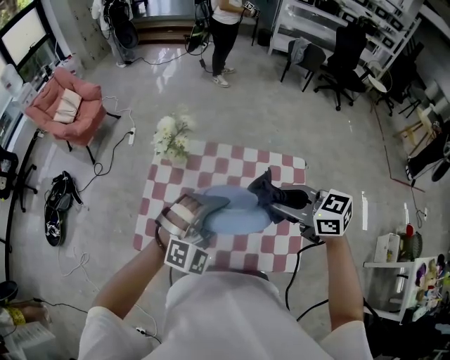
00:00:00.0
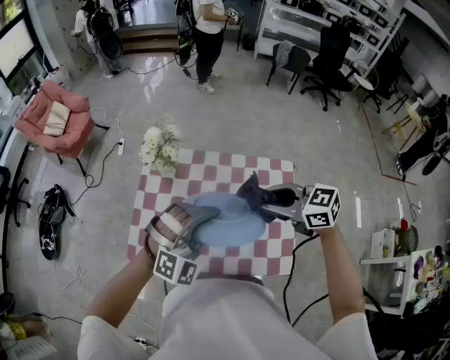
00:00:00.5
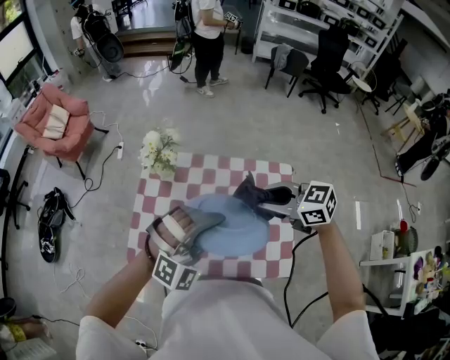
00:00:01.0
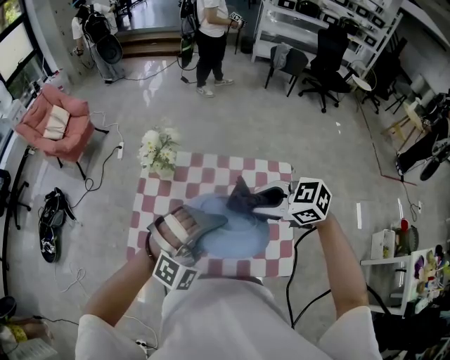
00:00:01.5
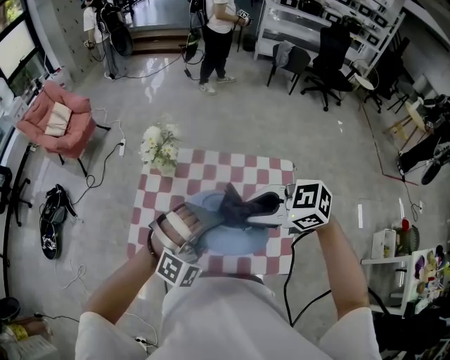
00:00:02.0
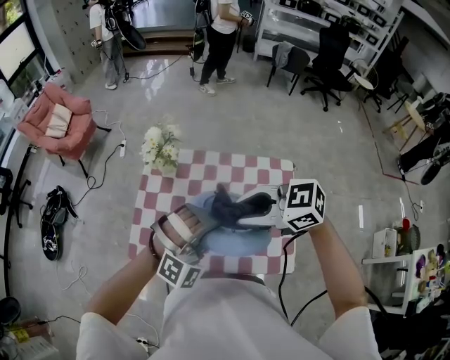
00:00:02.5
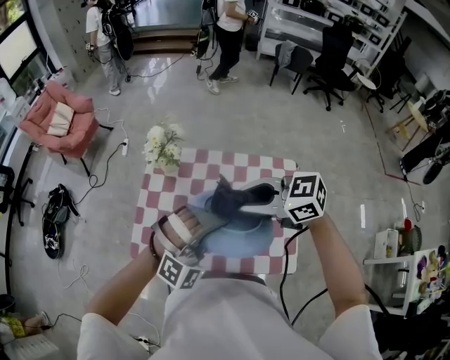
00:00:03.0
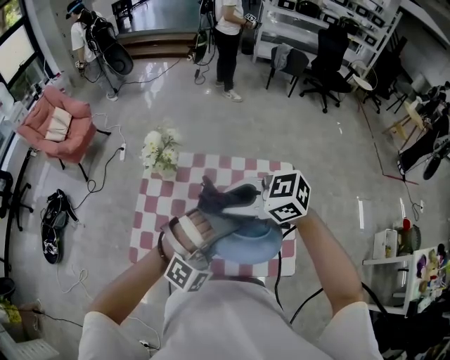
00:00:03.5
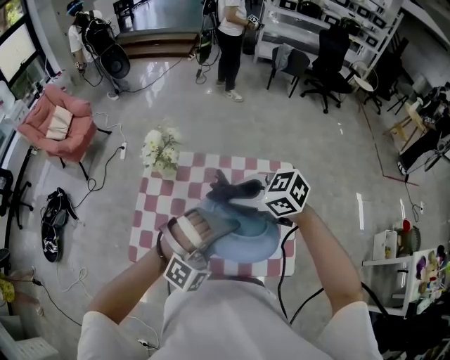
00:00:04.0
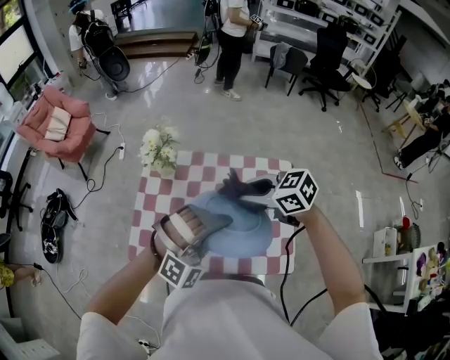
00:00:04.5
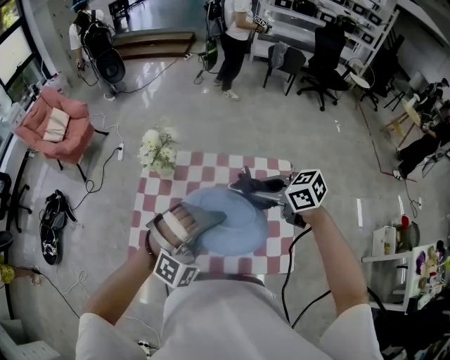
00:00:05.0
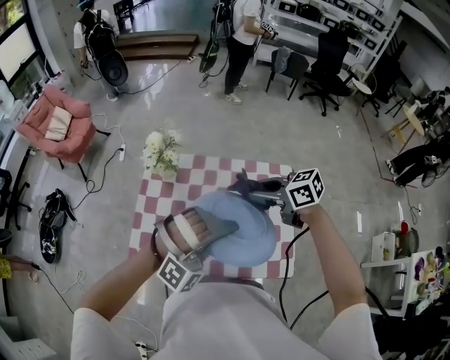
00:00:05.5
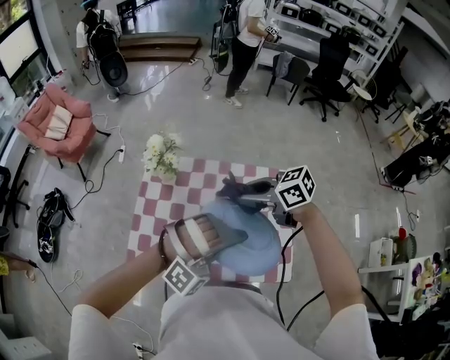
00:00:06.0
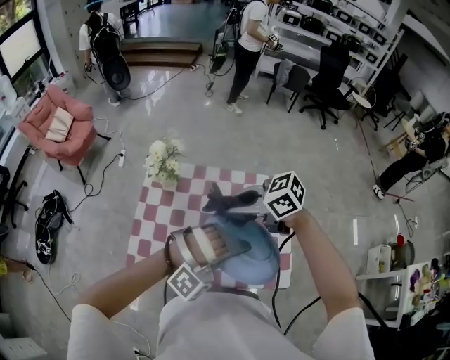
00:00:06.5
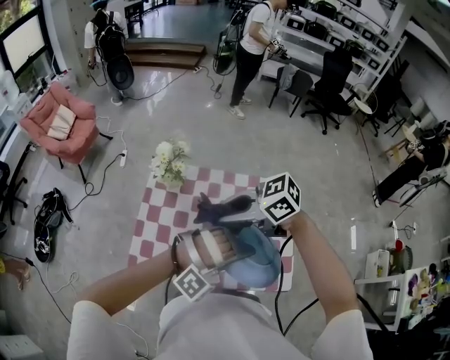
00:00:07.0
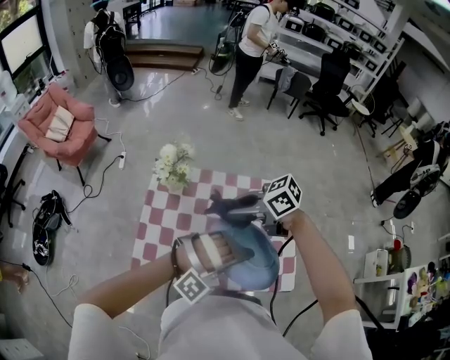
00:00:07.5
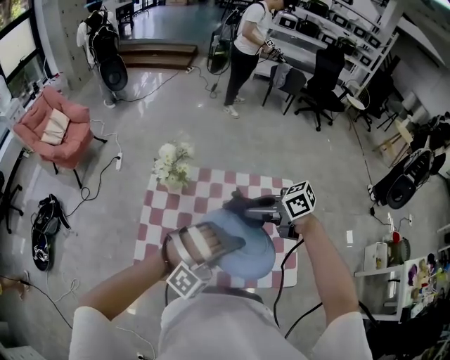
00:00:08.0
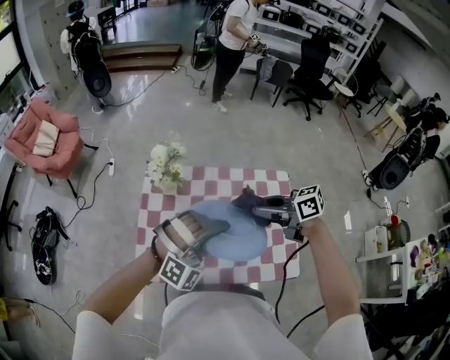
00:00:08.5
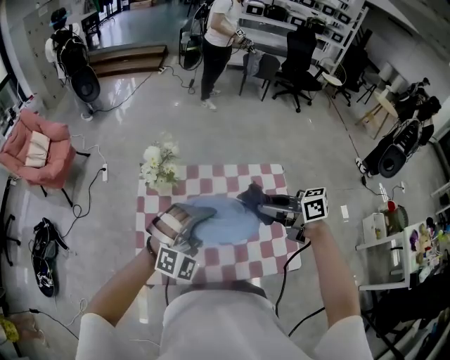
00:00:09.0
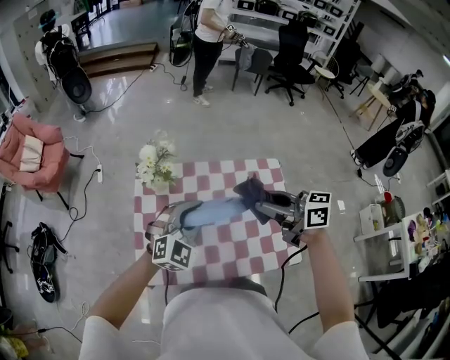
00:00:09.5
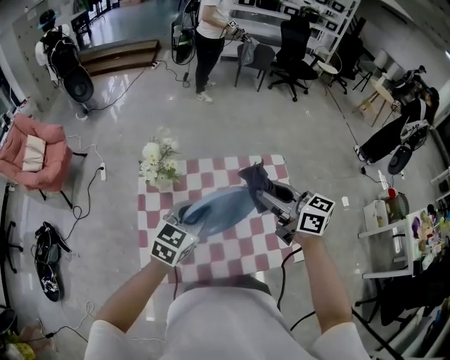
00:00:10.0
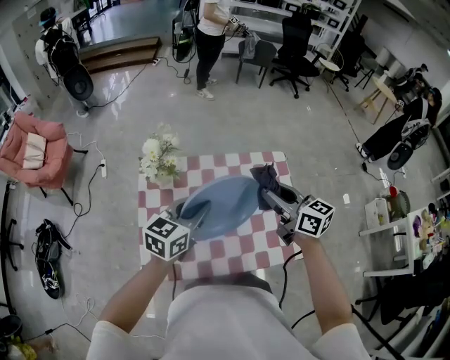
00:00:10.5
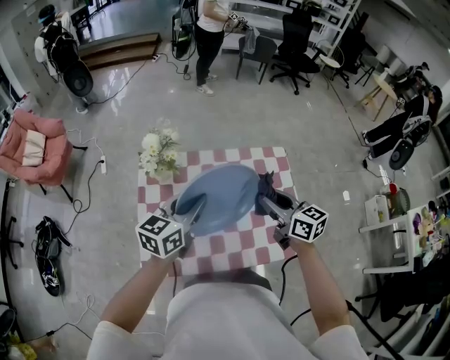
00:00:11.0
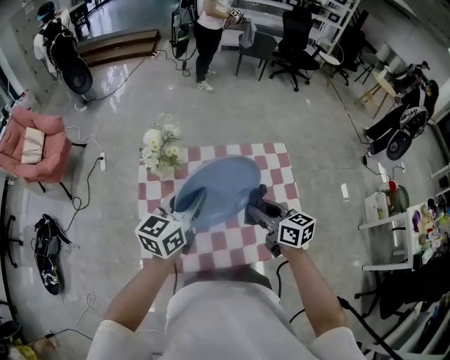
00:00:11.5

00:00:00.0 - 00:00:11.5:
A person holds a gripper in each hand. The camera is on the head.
00:00:00.0 - 00:00:02.0: The left gripper ends up approximately 5 cm from where it was. Meanwhile the right gripper ends up approximately 5 cm from where it was, and changes its angle by about 20 degrees.
00:00:02.0 - 00:00:04.0: The right gripper shifts by about 5 cm.
00:00:06.0 - 00:00:07.5: The right gripper ends up roughly 10 cm from where it was.
00:00:07.5 - 00:00:09.5: The left gripper shifts by roughly 20 cm, and rotates around the line of its fingers by roughly 50 degrees, counterclockwise from behind. Meanwhile the right gripper ends up approximately 10 cm from where it was, and rotates roughly 40 degrees.
00:00:09.5 - 00:00:11.5: The right gripper shifts about 15 cm downward, and turns by some 30 degrees; the left gripper rotates around the line of its fingers by roughly 60 degrees, counterclockwise from behind.

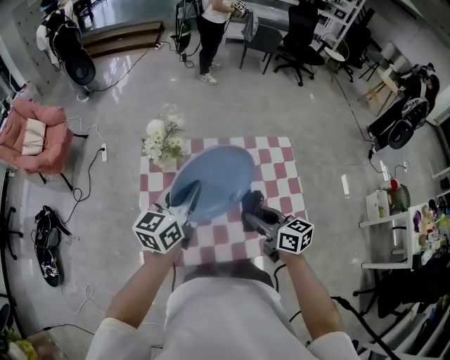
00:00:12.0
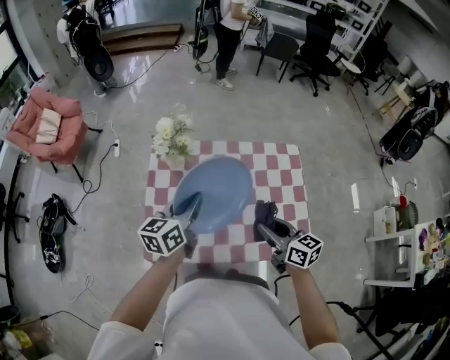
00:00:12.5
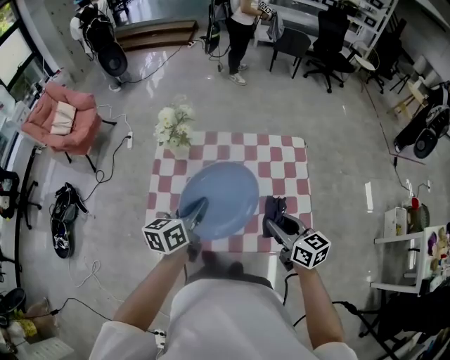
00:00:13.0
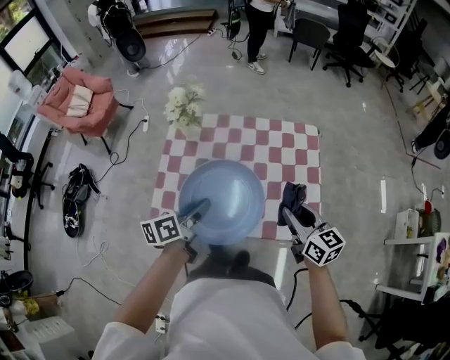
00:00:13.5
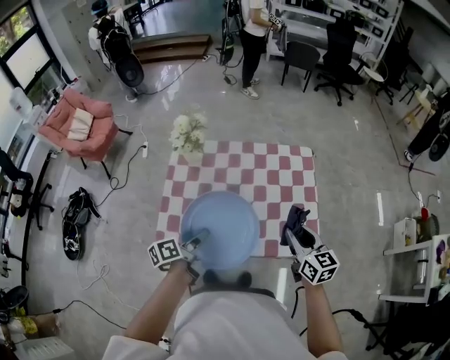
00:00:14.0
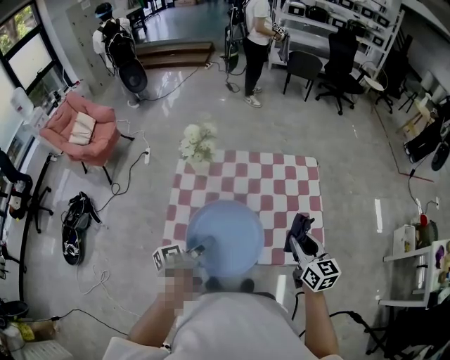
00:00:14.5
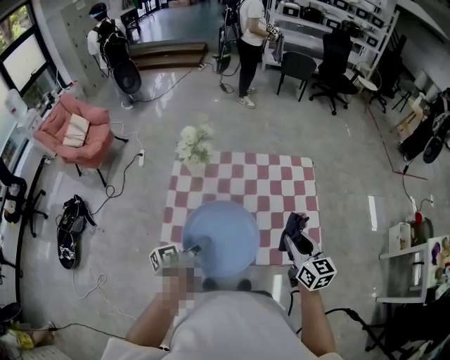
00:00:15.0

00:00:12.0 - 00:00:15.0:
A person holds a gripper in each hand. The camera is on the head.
00:00:12.0 - 00:00:13.5: The left gripper travels backward and downward by about 20 cm, and turns by some 40 degrees. Meanwhile the right gripper moves to the right and backward, about 15 cm.
00:00:13.5 - 00:00:15.0: The left gripper is displaced to the left by some 5 cm, and rotates roughly 20 degrees. The right gripper changes place by approximately 5 cm.

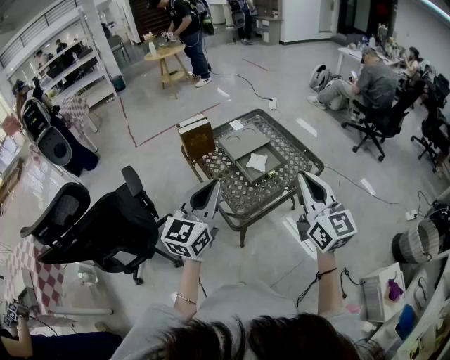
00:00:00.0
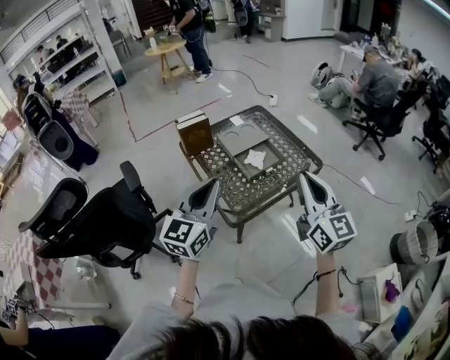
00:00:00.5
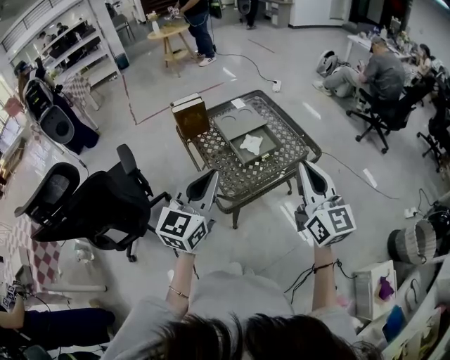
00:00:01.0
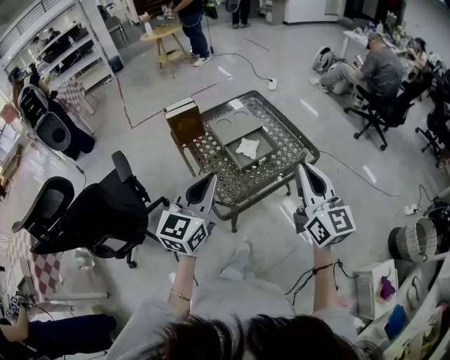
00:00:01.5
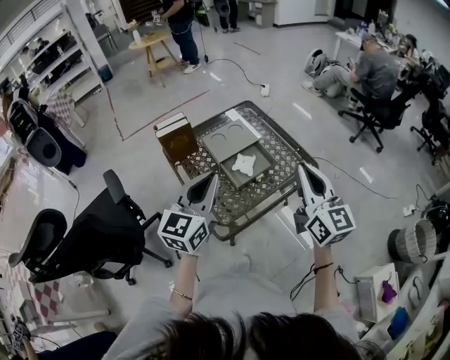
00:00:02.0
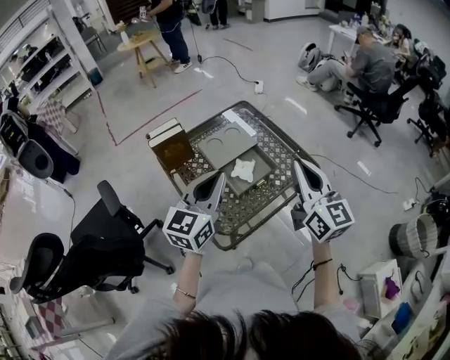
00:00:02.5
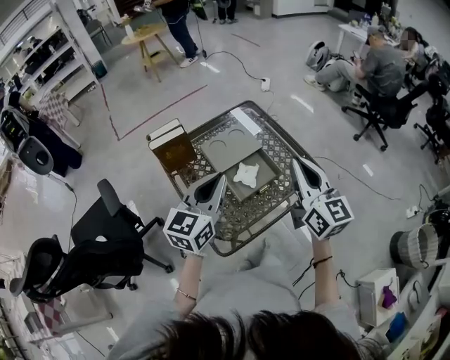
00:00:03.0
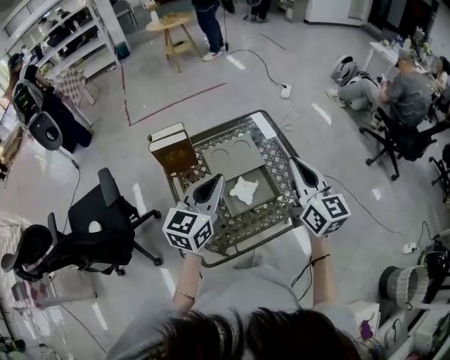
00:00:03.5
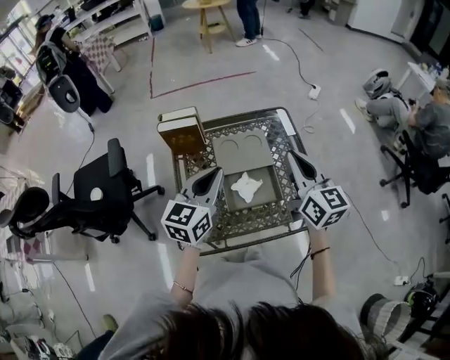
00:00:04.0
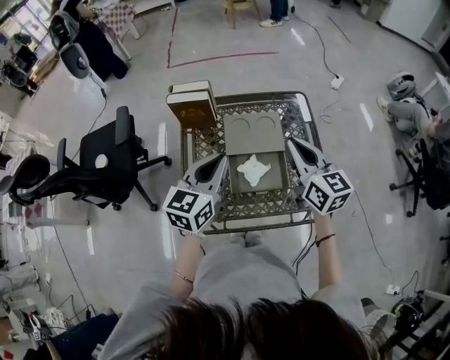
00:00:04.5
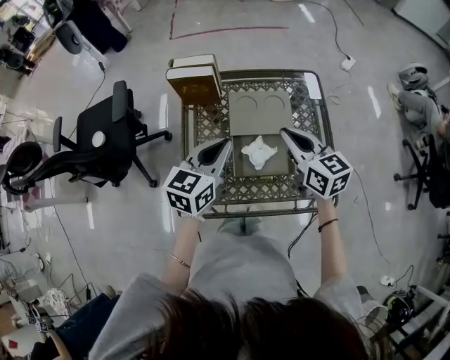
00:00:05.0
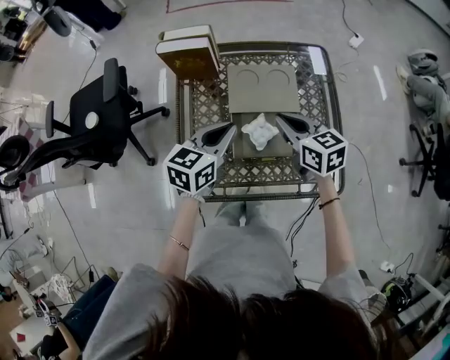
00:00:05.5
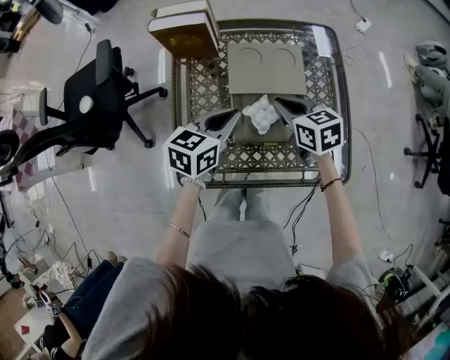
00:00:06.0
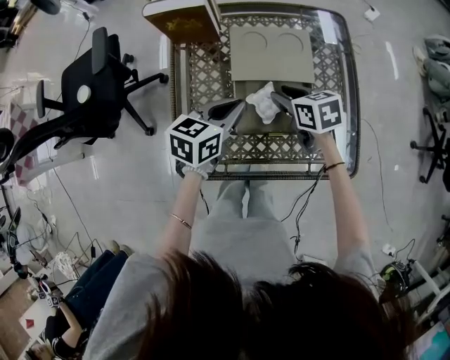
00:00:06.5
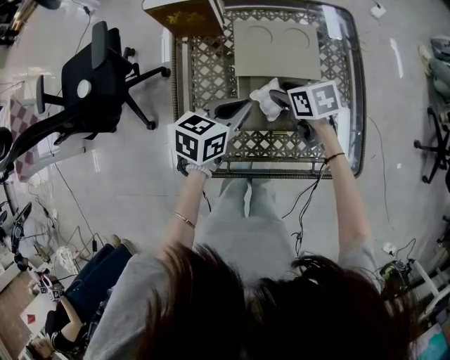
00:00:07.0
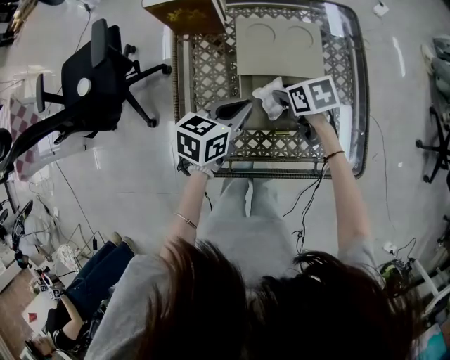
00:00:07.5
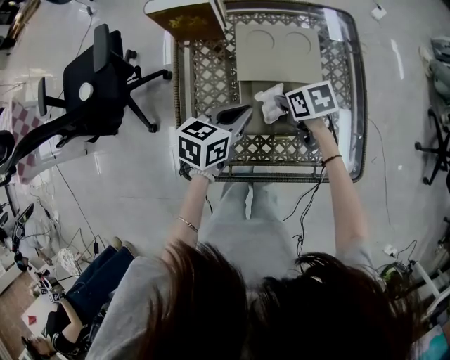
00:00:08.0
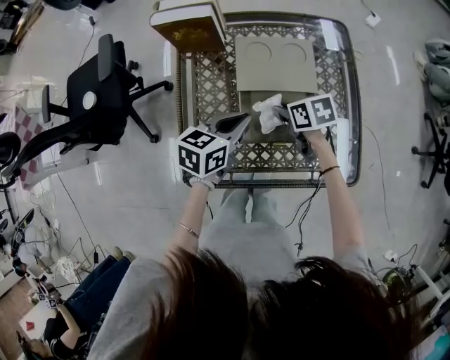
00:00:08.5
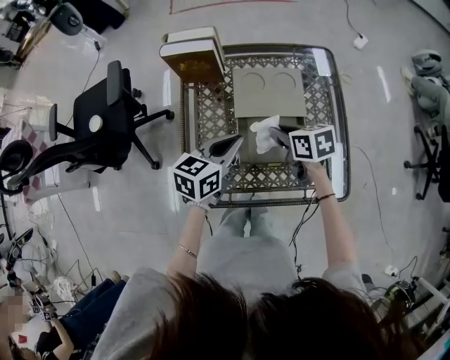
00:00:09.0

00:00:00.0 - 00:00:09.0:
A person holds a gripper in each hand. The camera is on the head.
00:00:00.0 - 00:00:02.0: The grippers both shift forward and to the right by roughly 10 cm.
00:00:02.0 - 00:00:04.5: The right gripper shifts by roughly 30 cm, and changes its angle by roughly 40 degrees; the left gripper changes place by approximately 20 cm, and rotates roughly 30 degrees.
00:00:04.5 - 00:00:07.0: Both grippers travel together downward, about 25 cm. The right gripper tilts its fingers about 40 degrees downward, and opens up, while the left gripper turns by approximately 30 degrees.
00:00:07.0 - 00:00:09.0: The grippers both shift upward by approximately 5 cm. The right gripper closes up.

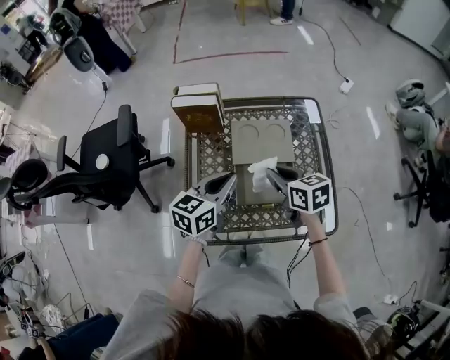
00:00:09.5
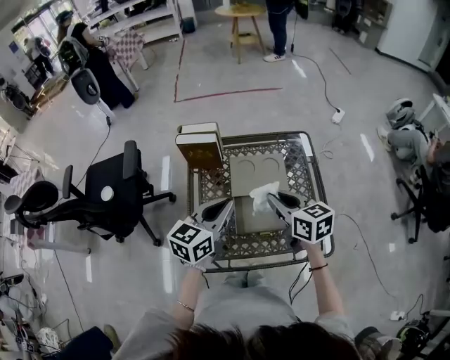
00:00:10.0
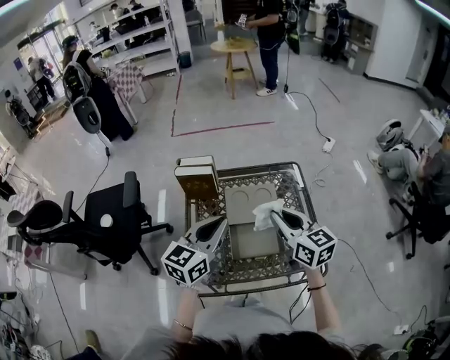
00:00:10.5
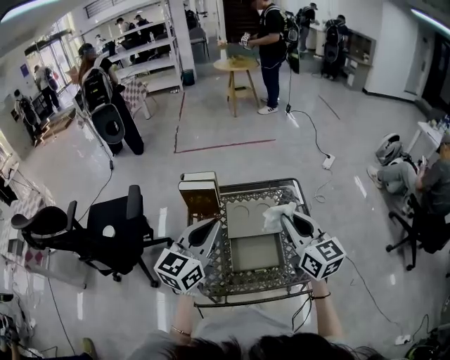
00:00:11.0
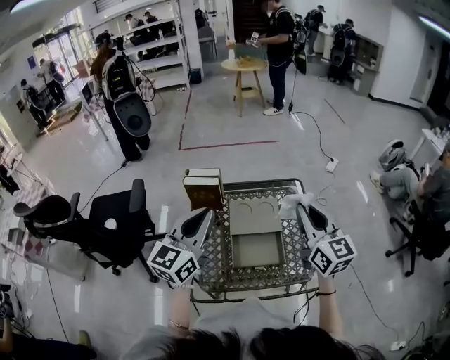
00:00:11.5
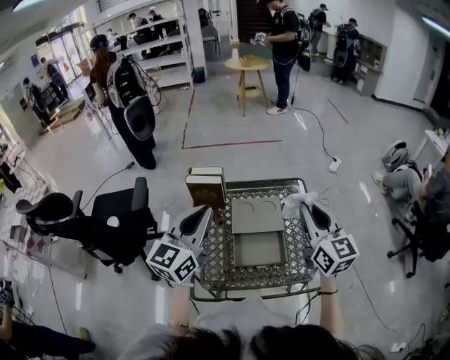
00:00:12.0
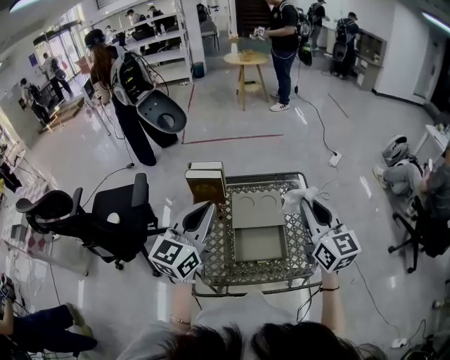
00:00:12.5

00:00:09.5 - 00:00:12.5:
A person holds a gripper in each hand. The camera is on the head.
00:00:09.5 - 00:00:11.0: The two grippers go approximately 20 cm upward. The right gripper angles its fingers upward, by approximately 30 degrees. Meanwhile the left gripper rotates approximately 30 degrees.
00:00:11.0 - 00:00:12.5: The grippers make only small movements.
